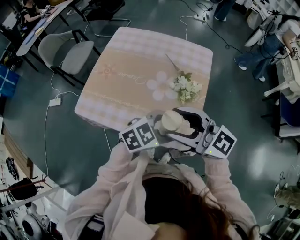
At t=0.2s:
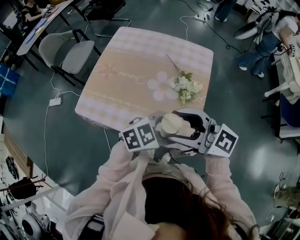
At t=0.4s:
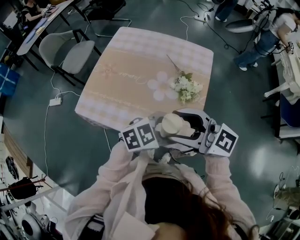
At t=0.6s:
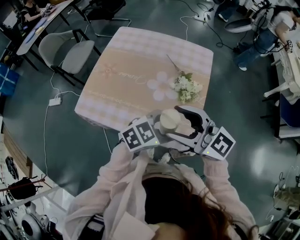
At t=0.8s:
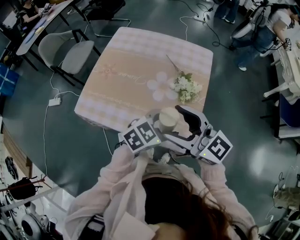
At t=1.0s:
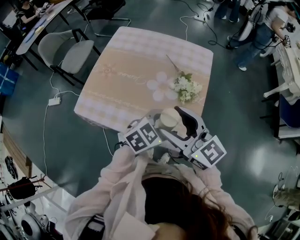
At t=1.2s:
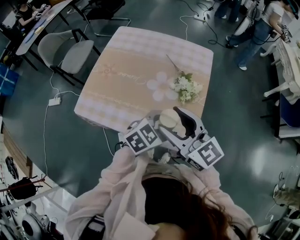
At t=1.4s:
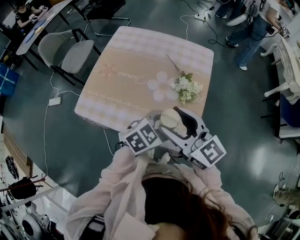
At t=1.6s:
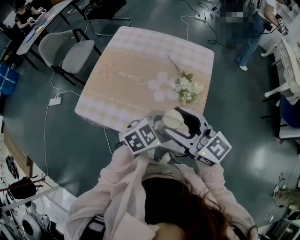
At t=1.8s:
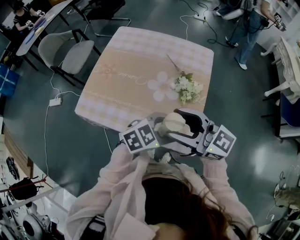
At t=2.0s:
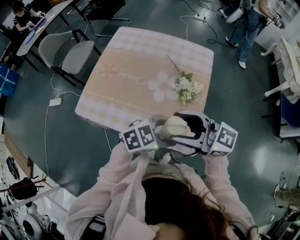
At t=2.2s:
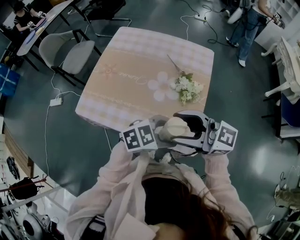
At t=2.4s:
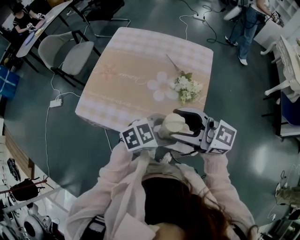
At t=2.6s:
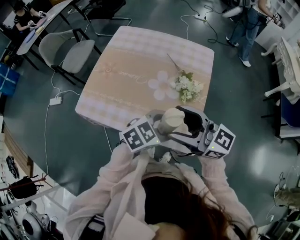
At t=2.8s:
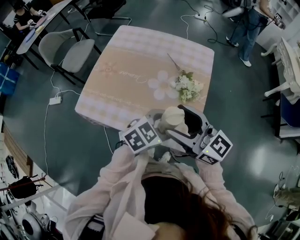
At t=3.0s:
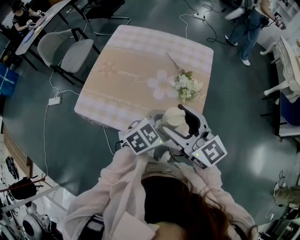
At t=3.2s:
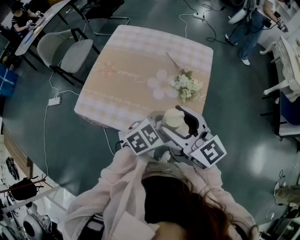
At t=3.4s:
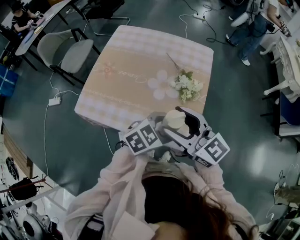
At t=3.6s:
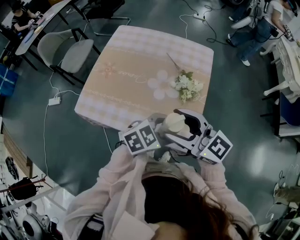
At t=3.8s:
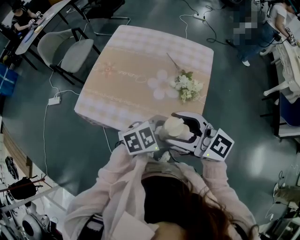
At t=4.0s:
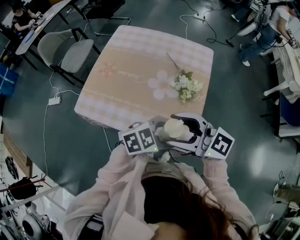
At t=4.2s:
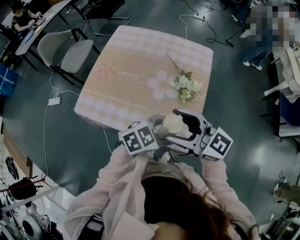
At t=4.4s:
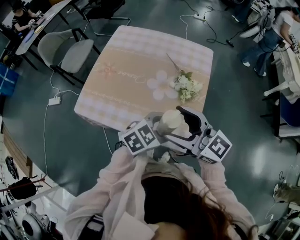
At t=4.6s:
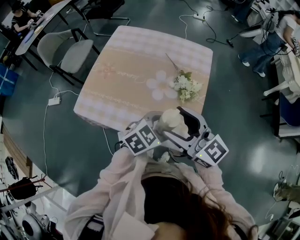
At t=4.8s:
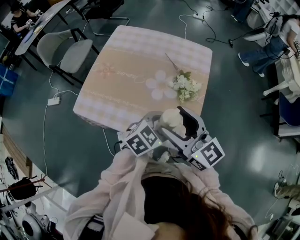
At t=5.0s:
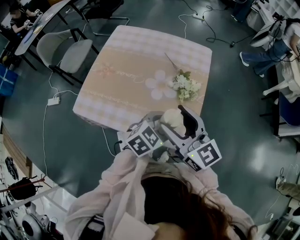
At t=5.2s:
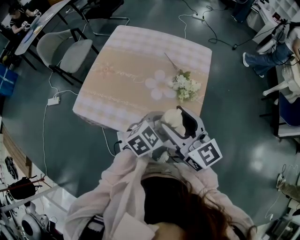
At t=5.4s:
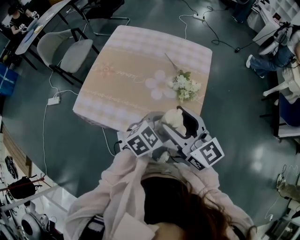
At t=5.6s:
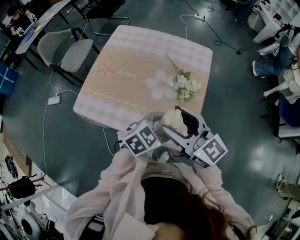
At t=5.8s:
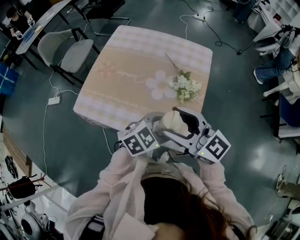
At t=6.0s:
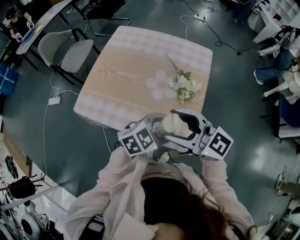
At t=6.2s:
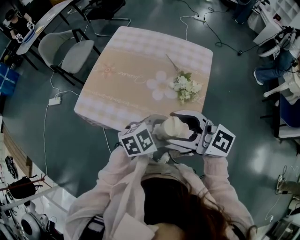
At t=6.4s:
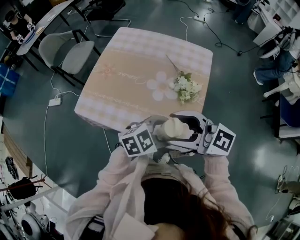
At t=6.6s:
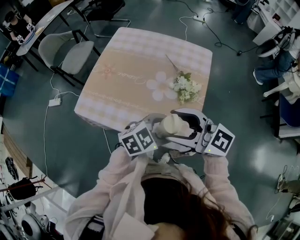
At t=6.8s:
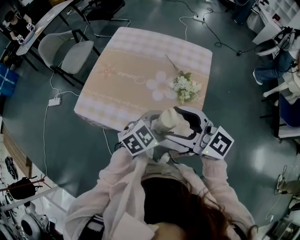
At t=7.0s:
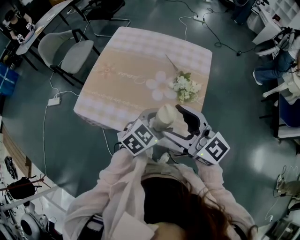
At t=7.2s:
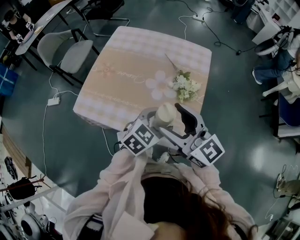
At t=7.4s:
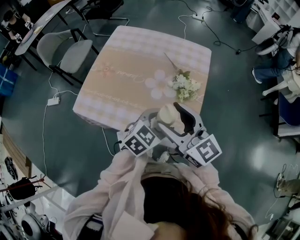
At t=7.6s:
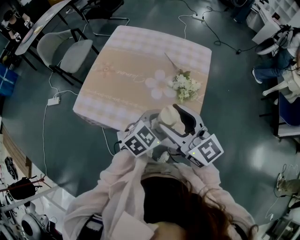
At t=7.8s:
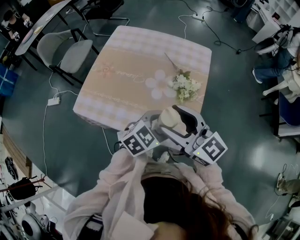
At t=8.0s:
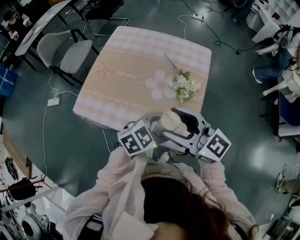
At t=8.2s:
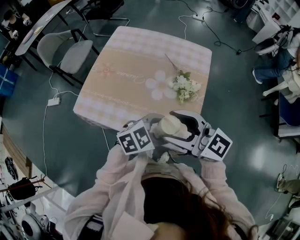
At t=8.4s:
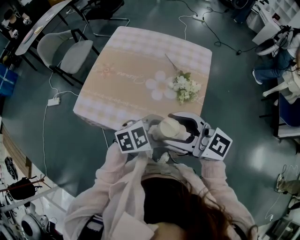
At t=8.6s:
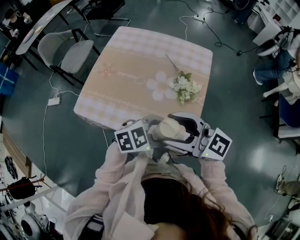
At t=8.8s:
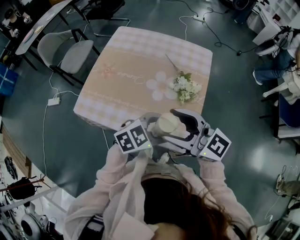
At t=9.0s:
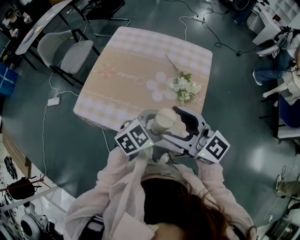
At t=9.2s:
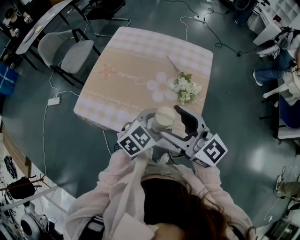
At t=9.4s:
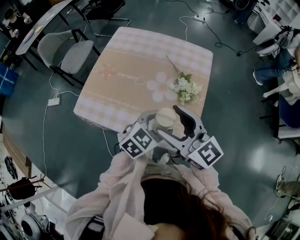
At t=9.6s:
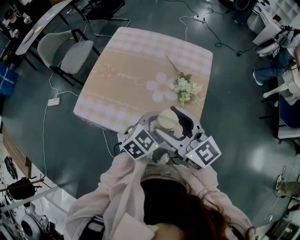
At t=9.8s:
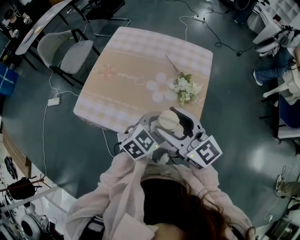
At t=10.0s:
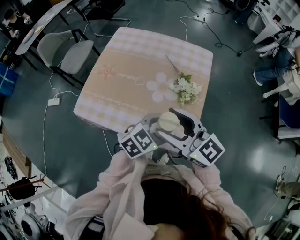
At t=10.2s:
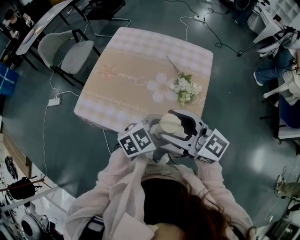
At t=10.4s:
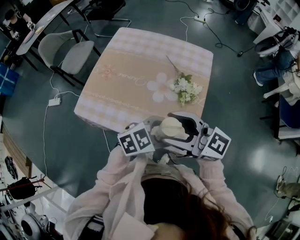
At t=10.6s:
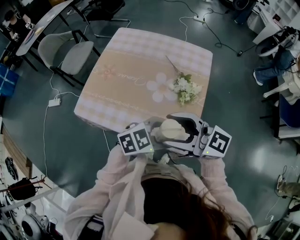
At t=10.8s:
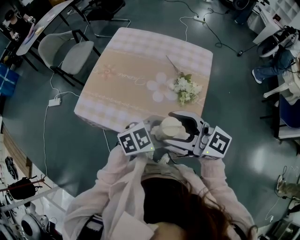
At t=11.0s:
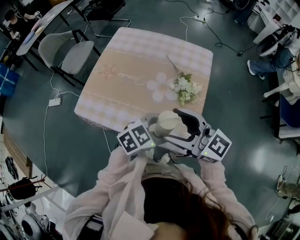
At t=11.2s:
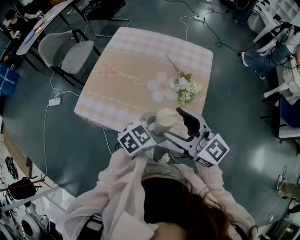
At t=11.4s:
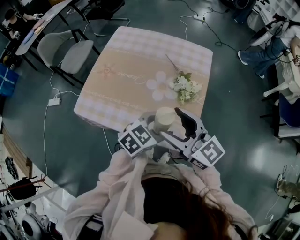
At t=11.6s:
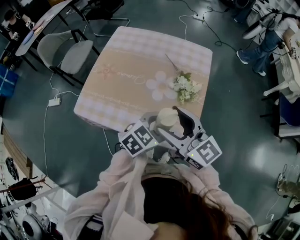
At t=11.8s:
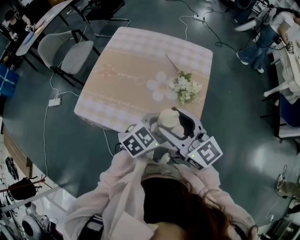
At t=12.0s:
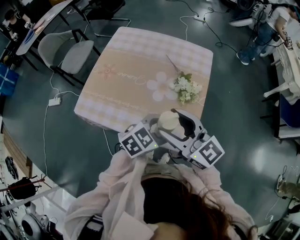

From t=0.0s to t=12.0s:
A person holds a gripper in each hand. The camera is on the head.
From t=6.0s to t=7.6s: The right gripper swivels some 20 degrees.
From t=9.0s to t=10.4s: The grippers move only a little.

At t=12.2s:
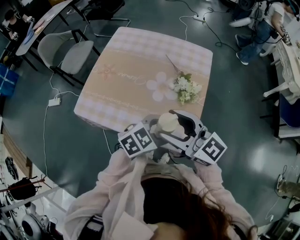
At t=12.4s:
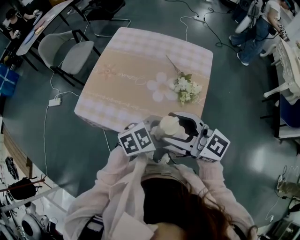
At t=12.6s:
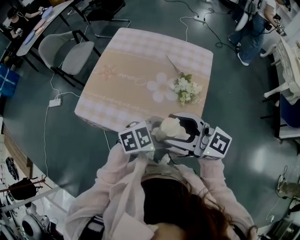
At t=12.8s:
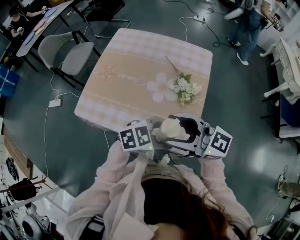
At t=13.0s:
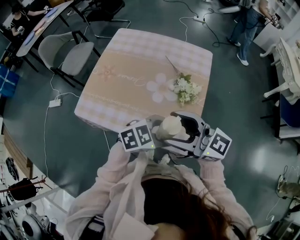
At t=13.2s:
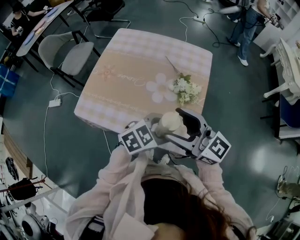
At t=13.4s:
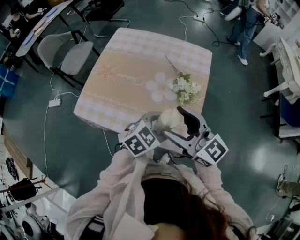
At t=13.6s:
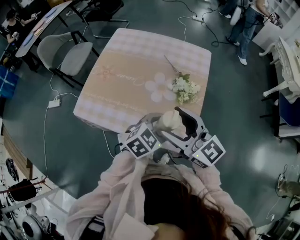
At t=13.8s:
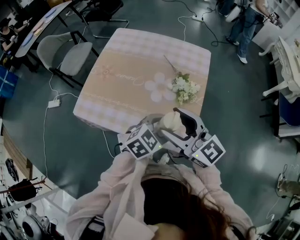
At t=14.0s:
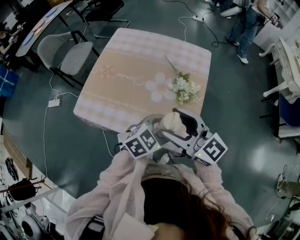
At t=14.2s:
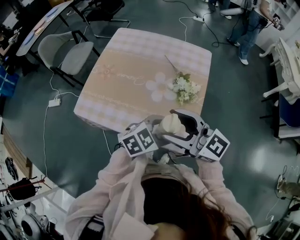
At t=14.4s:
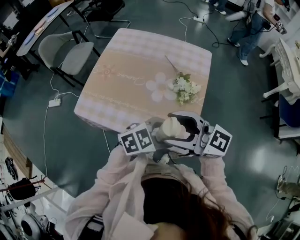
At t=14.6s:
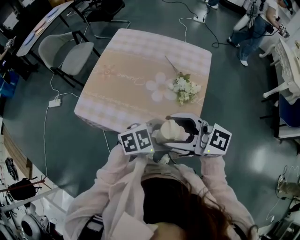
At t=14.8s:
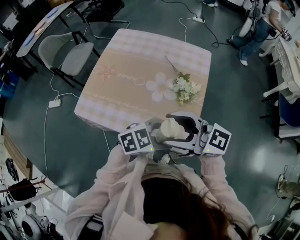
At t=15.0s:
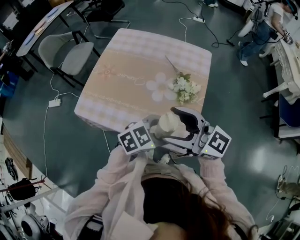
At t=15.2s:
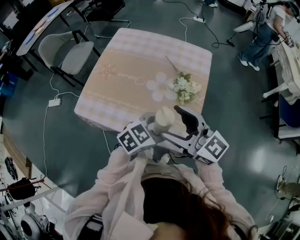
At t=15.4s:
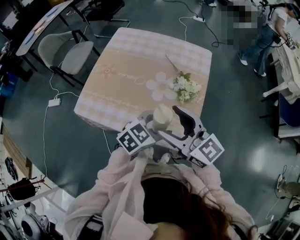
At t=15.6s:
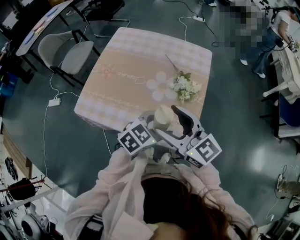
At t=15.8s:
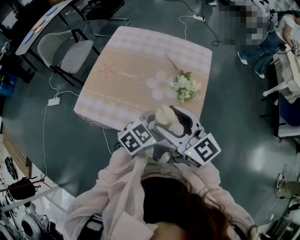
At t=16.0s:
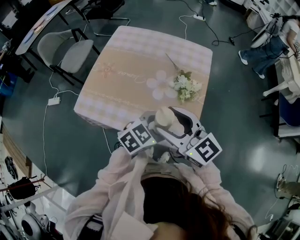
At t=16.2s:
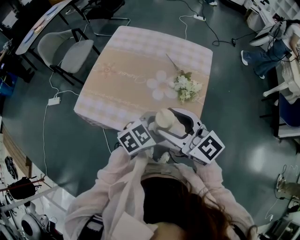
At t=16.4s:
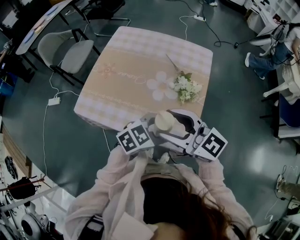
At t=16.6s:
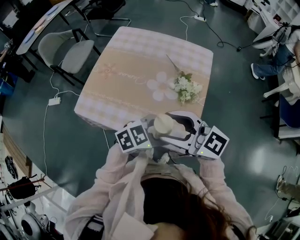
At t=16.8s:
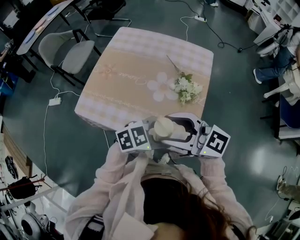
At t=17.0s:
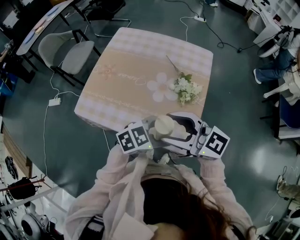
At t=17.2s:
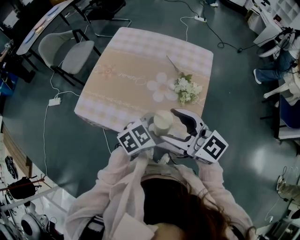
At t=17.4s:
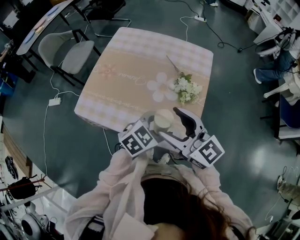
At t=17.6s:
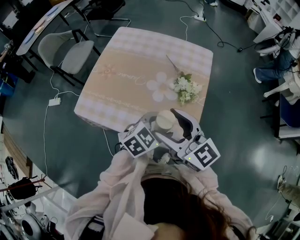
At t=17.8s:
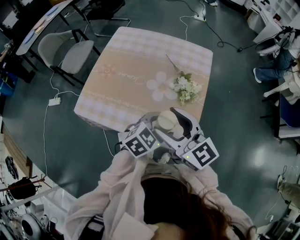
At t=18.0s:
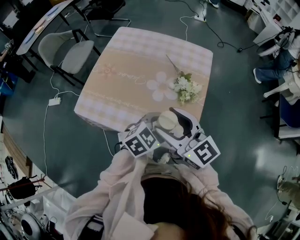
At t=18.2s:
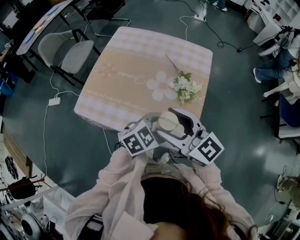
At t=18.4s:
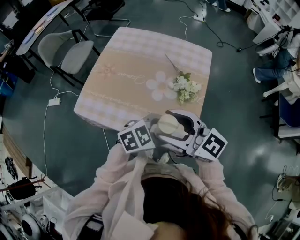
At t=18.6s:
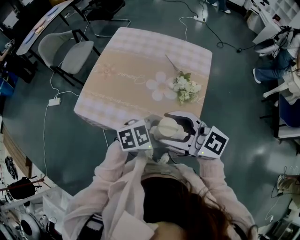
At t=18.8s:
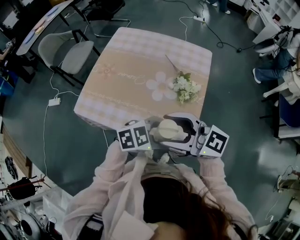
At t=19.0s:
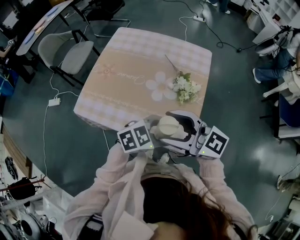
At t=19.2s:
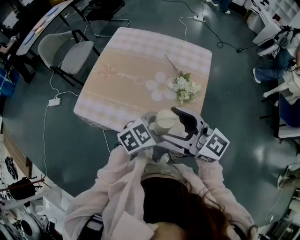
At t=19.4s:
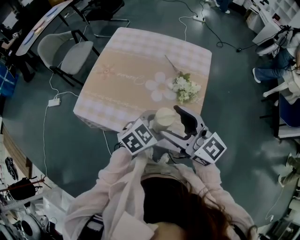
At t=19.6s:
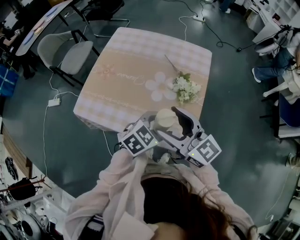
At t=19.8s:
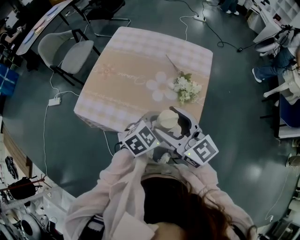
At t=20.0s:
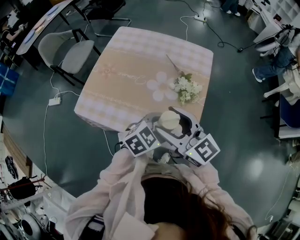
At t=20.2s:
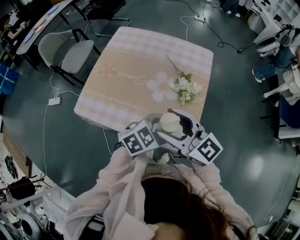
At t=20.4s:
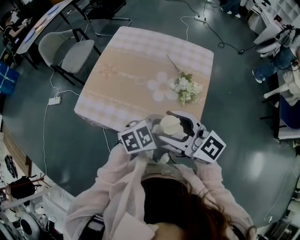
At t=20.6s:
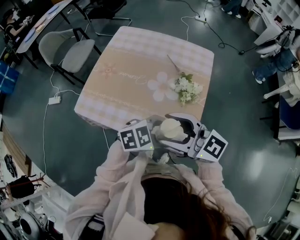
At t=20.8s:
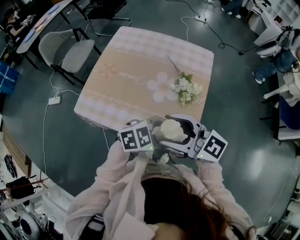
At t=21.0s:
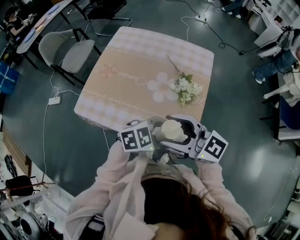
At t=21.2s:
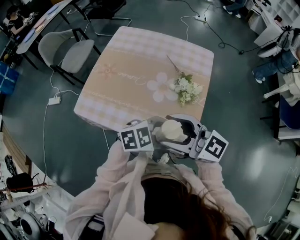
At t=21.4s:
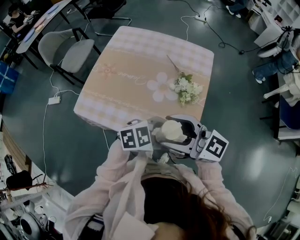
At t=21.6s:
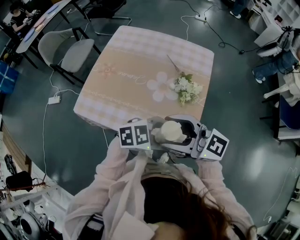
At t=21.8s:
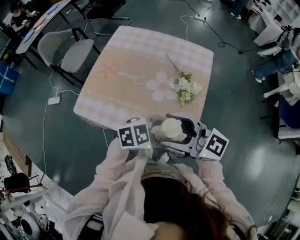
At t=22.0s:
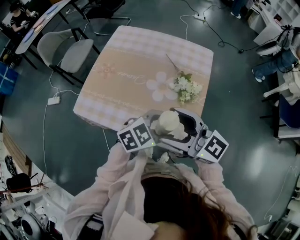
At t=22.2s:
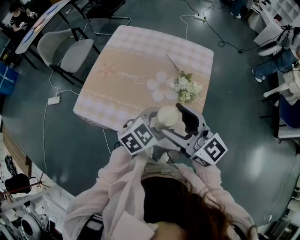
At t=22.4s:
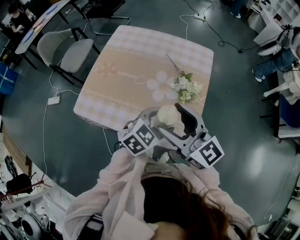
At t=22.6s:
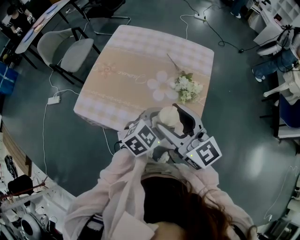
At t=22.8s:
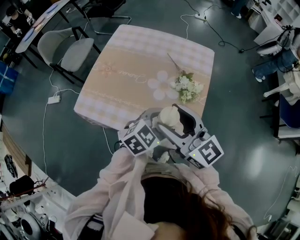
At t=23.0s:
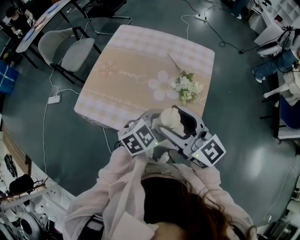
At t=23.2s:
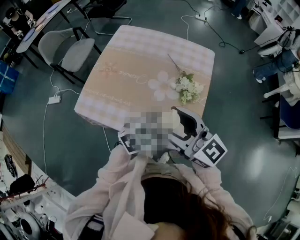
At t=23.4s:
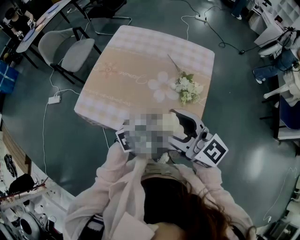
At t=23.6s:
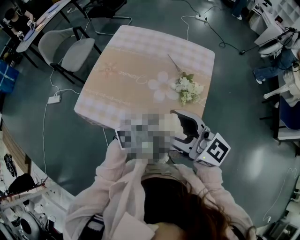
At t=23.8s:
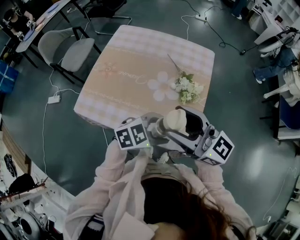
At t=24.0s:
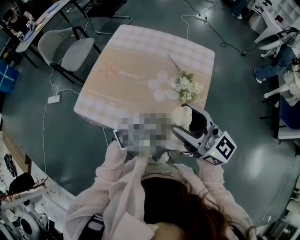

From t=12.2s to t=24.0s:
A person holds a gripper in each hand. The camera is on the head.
From t=12.2s to t=13.6s: The grippers move only a little.
From t=15.2s to t=16.6s: The grippers stay close to where they were, moving slightly.
From t=19.6s to t=21.0s: The left gripper moves some 5 cm, and turns by some 20 degrees.
From t=21.0s to t=22.6s: The right gripper changes its angle by roughly 20 degrees. The left gripper moves about 5 cm, and swivels approximately 30 degrees.

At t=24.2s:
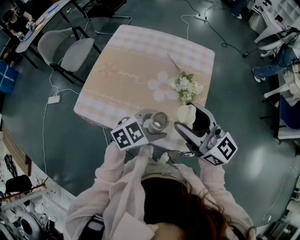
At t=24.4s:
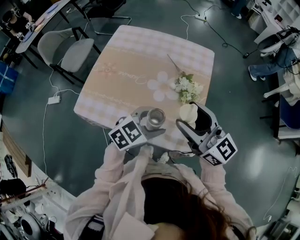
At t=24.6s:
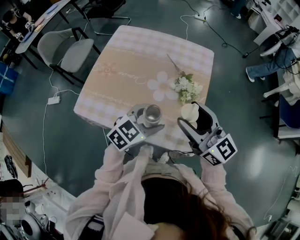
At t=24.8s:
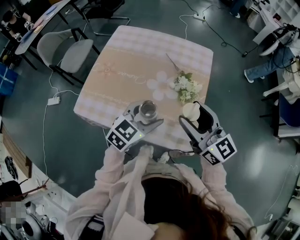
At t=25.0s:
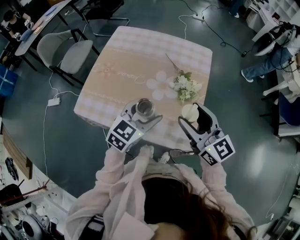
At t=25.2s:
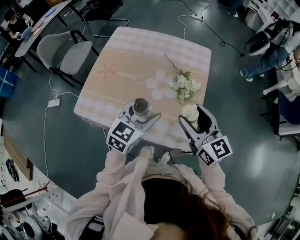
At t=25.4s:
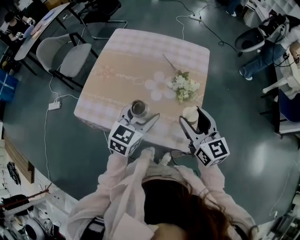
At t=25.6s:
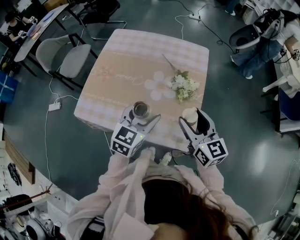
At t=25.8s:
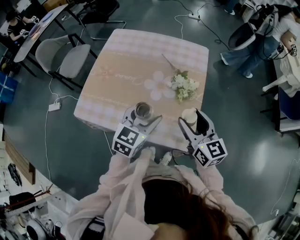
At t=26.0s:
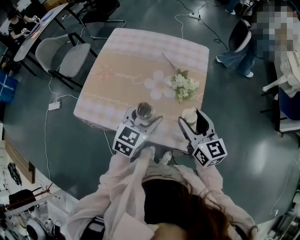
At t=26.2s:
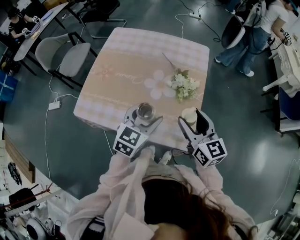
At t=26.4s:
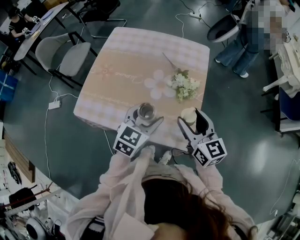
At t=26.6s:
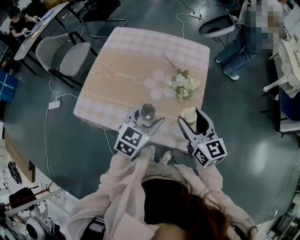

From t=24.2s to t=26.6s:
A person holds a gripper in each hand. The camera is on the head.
From t=24.2s to t=25.4s: The left gripper heads to the left, covering about 5 cm, and turns by some 40 degrees. The right gripper travels downward by approximately 10 cm, and changes its angle by some 30 degrees.
From t=25.4s to t=26.6s: There are only small adjustments of the grippers.
